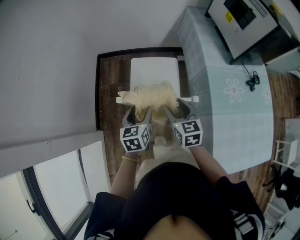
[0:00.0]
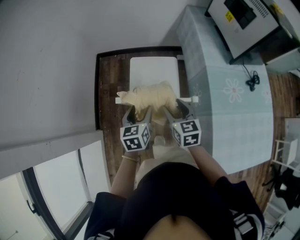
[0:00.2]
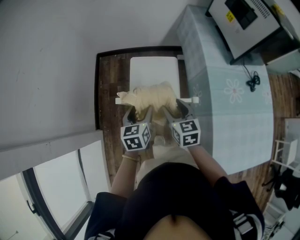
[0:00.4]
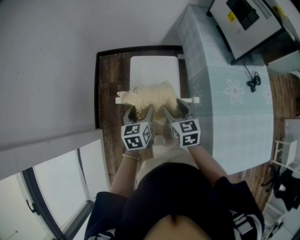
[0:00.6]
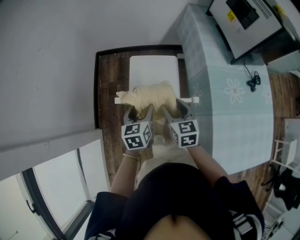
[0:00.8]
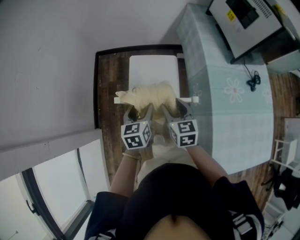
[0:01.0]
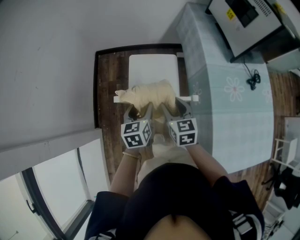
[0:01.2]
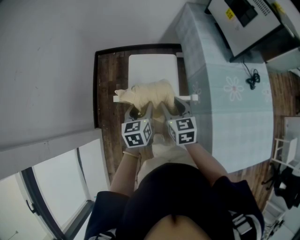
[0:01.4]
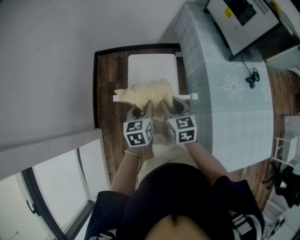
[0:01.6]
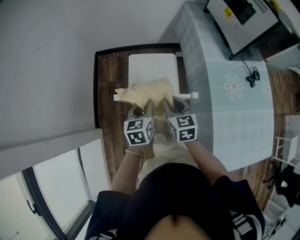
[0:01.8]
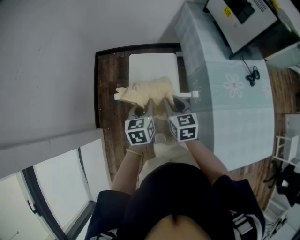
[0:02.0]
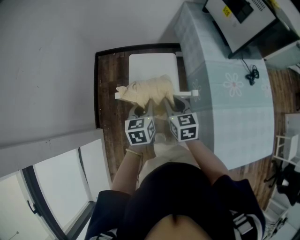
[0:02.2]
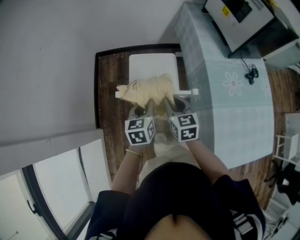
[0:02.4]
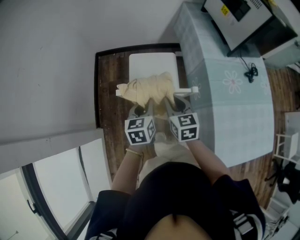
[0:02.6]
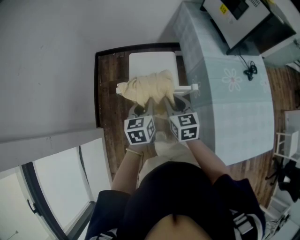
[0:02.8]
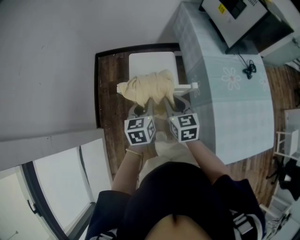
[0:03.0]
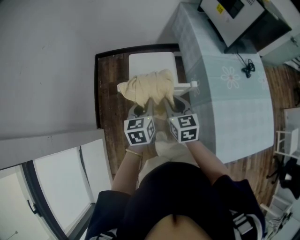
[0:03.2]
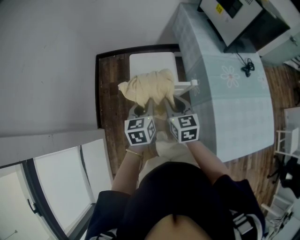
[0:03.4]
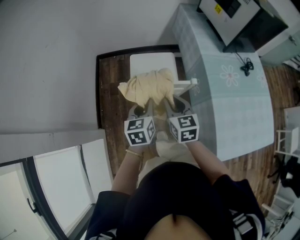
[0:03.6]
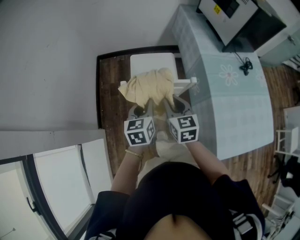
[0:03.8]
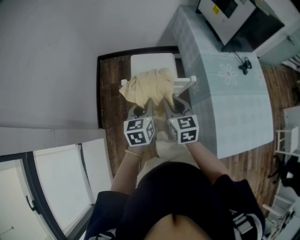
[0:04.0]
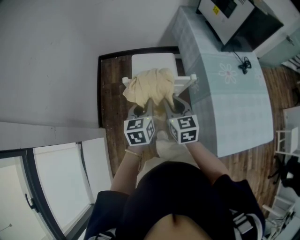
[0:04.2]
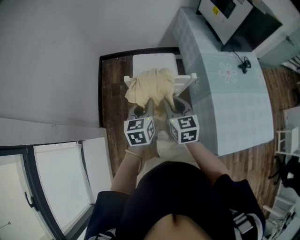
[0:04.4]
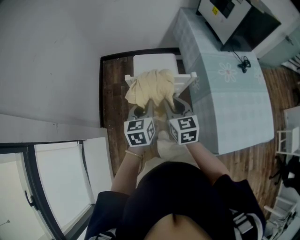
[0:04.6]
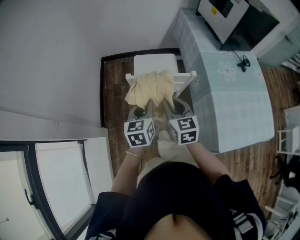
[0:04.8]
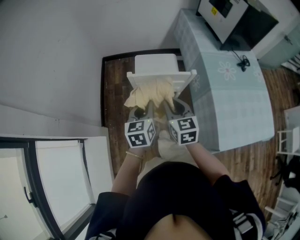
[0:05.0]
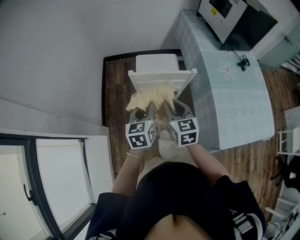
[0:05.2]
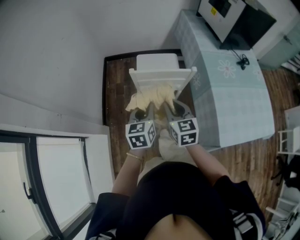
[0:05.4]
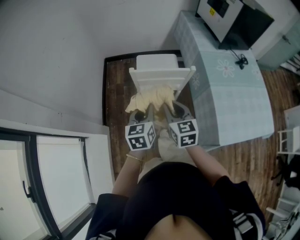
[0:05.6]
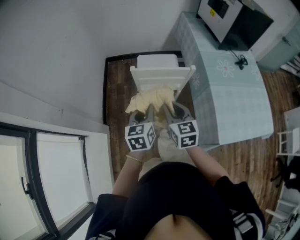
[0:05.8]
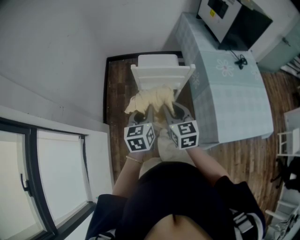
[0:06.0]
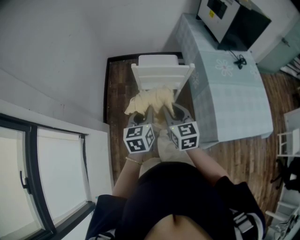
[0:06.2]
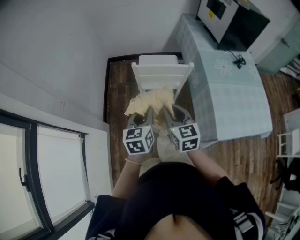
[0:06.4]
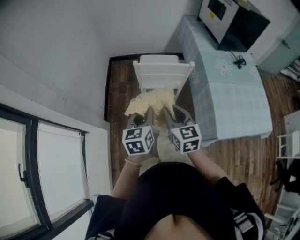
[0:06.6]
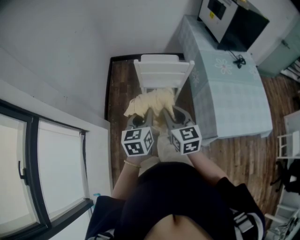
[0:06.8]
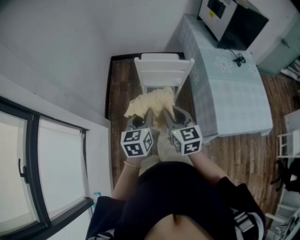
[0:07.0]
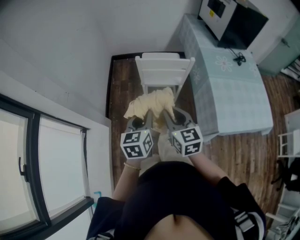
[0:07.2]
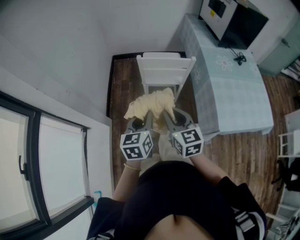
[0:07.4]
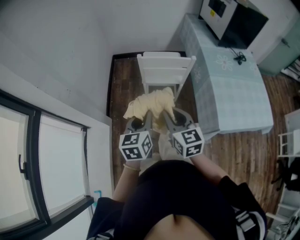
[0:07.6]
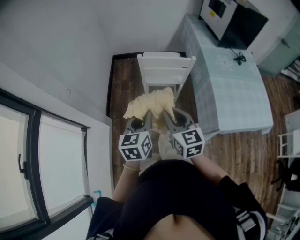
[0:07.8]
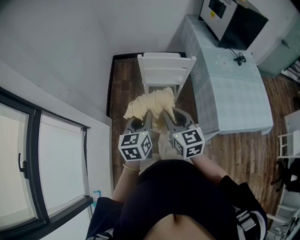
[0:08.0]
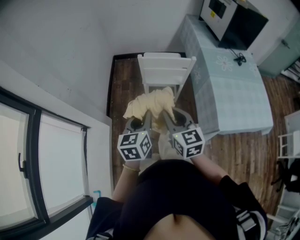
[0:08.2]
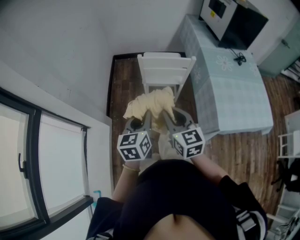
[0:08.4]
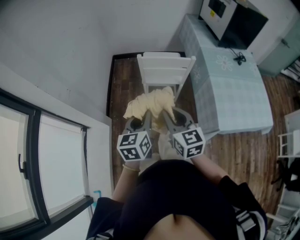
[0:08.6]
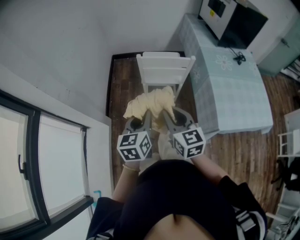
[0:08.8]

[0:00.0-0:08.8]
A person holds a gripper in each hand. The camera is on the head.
0.0 to 1.4 s: There are only small adjustments of the grippers.
1.4 to 3.0 s: The left gripper closes up; the right gripper shifts by roughly 5 cm, and closes its fingers.
3.0 to 4.4 s: Both grippers travel together backward, approximately 5 cm.
4.4 to 5.8 s: Both grippers travel together backward, some 10 cm.
5.8 to 7.4 s: The two grippers go some 15 cm backward.
7.4 to 8.8 s: The grippers stay close to where they were, moving slightly.

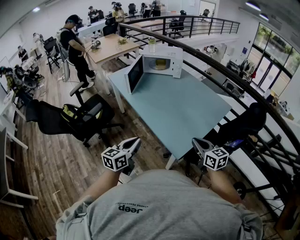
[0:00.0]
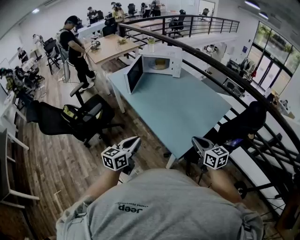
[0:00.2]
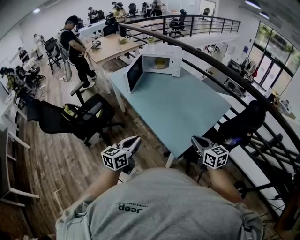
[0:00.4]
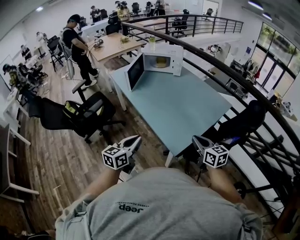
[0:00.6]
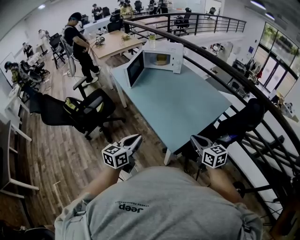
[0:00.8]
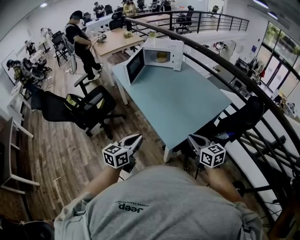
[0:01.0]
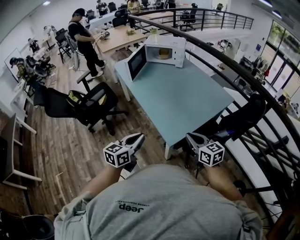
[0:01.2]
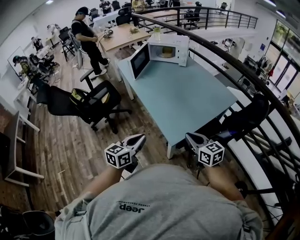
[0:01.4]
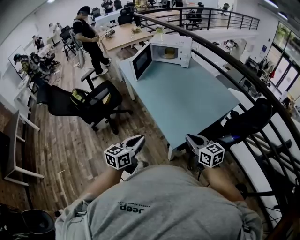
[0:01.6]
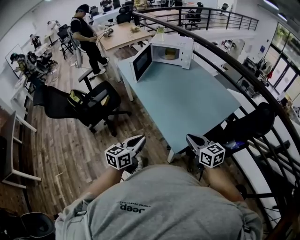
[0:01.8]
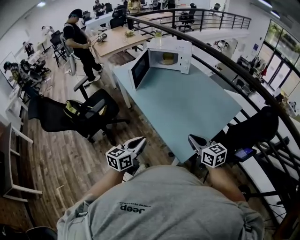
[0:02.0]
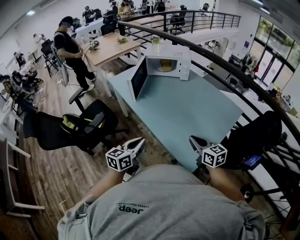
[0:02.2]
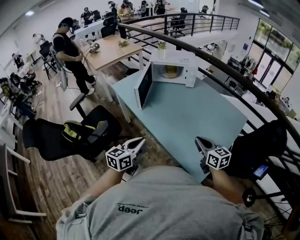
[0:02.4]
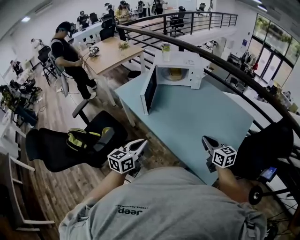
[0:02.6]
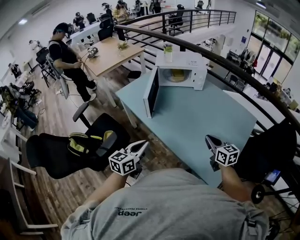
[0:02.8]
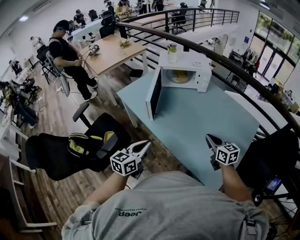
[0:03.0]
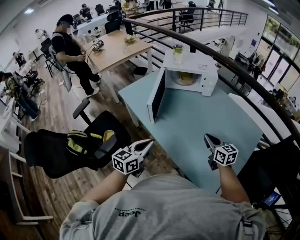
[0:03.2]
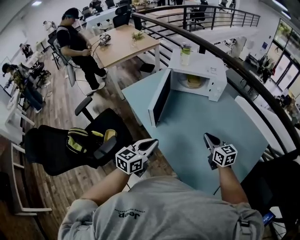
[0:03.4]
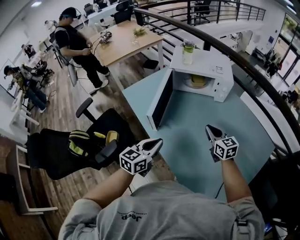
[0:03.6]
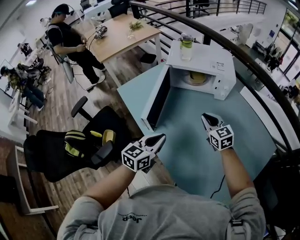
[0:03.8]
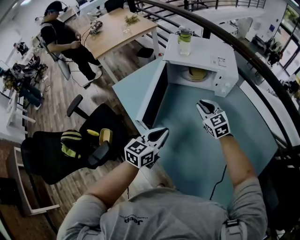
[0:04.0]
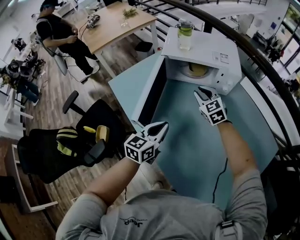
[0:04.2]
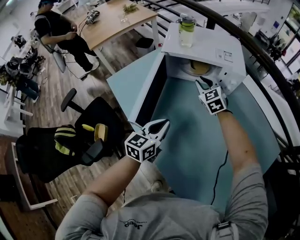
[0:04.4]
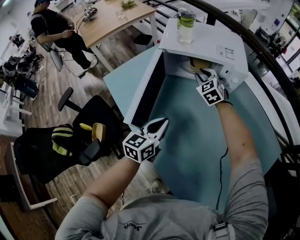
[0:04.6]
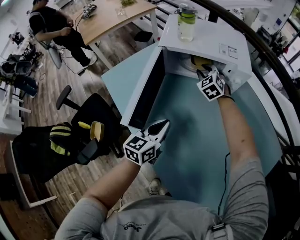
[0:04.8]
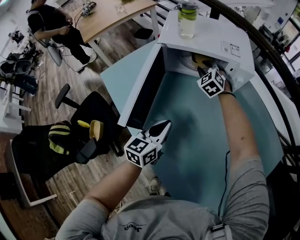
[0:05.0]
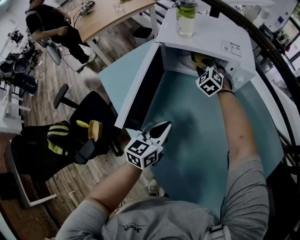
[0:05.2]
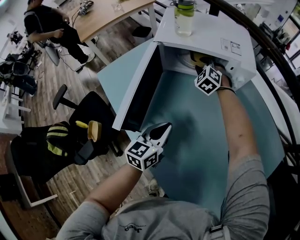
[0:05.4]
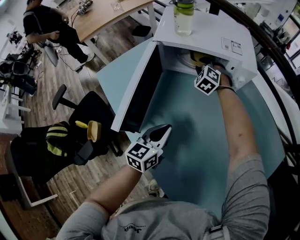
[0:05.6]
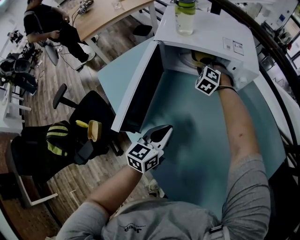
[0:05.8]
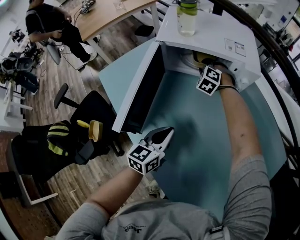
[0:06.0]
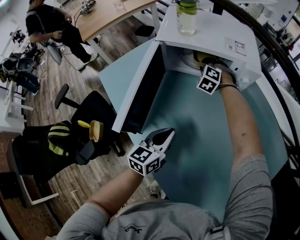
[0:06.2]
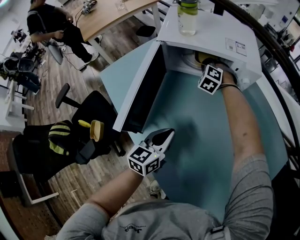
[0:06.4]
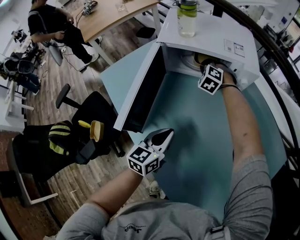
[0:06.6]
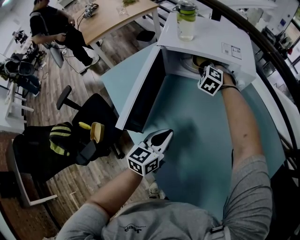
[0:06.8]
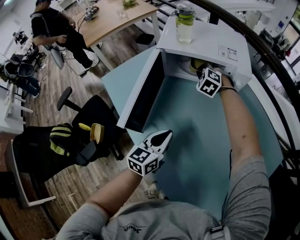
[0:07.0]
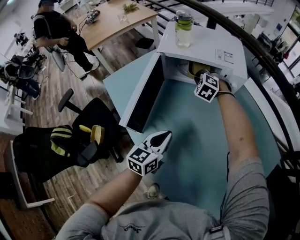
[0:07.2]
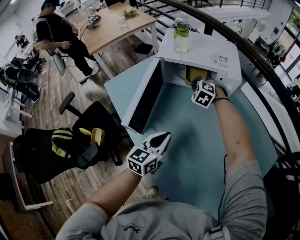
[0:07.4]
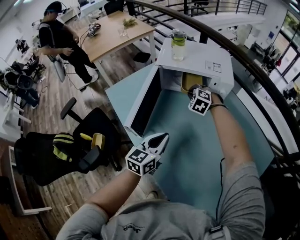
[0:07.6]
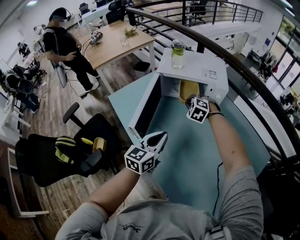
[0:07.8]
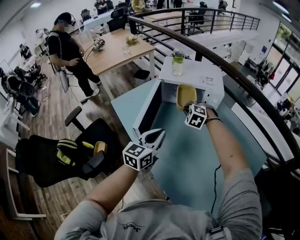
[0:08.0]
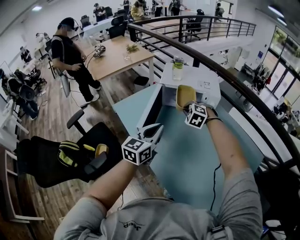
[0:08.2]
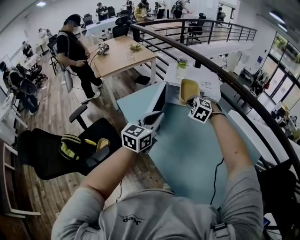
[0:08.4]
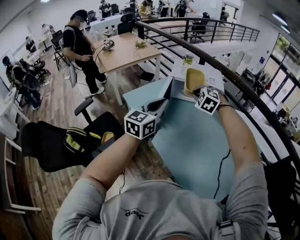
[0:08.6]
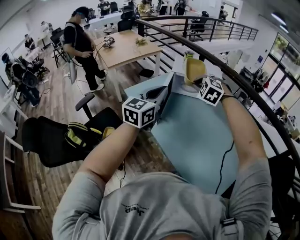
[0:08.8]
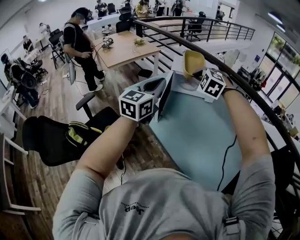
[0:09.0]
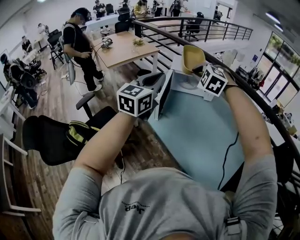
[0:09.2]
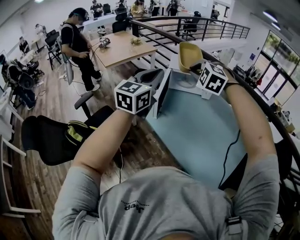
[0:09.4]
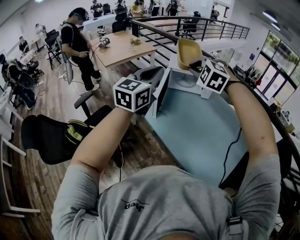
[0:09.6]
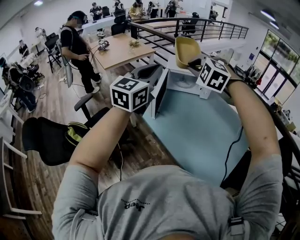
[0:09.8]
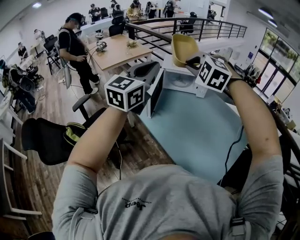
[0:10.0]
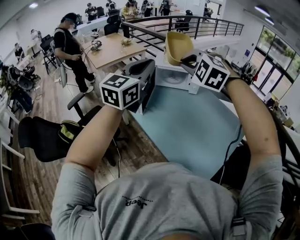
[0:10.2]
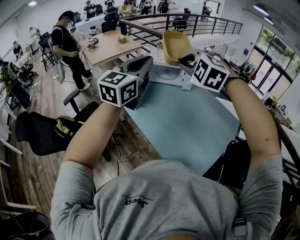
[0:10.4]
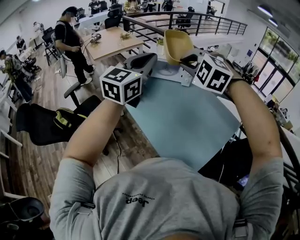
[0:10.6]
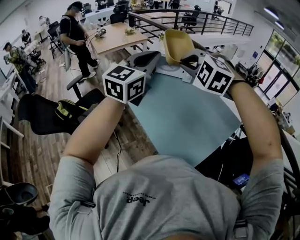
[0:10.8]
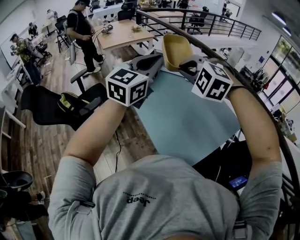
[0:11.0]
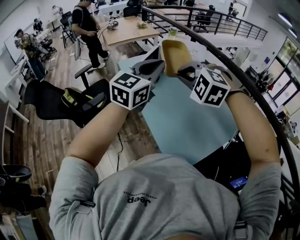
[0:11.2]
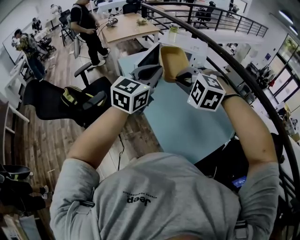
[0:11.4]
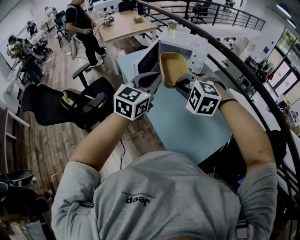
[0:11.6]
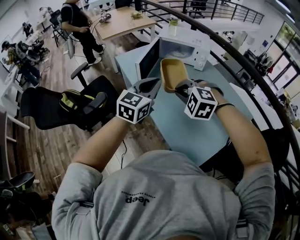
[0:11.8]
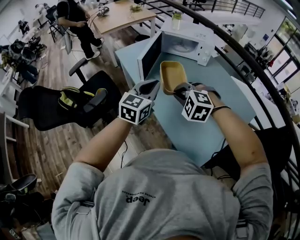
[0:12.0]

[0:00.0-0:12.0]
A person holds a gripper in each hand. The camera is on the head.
0.0 to 1.6 s: The left gripper moves to the right and backward, some 10 cm.
1.6 to 3.0 s: The two grippers go about 40 cm forward and to the left. The right gripper changes its angle by roughly 20 degrees.
3.0 to 4.4 s: The right gripper shifts approximately 50 cm forward, and turns by roughly 40 degrees. The left gripper heads forward, covering about 30 cm.
4.4 to 6.0 s: The left gripper heads downward, covering approximately 5 cm, while the right gripper is displaced downward and forward by roughly 15 cm, and changes its angle by some 40 degrees.
6.0 to 7.6 s: The right gripper goes roughly 15 cm backward and upward, and closes. Meanwhile the left gripper travels upward by approximately 10 cm.
7.6 to 9.0 s: The left gripper is displaced upward by approximately 30 cm, and turns by about 20 degrees; the right gripper goes approximately 40 cm upward and backward.
9.0 to 10.4 s: The right gripper moves backward, upward and to the right, some 20 cm; the left gripper goes roughly 15 cm to the right, upward and backward.
10.4 to 12.0 s: Both grippers move downward, roughly 25 cm. The left gripper changes its angle by approximately 20 degrees. The right gripper turns by some 20 degrees.

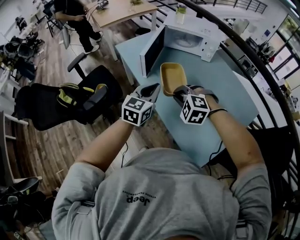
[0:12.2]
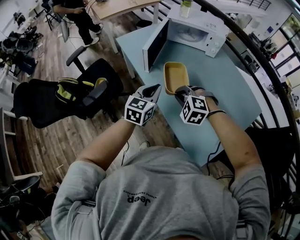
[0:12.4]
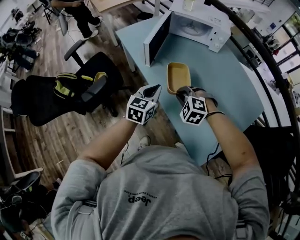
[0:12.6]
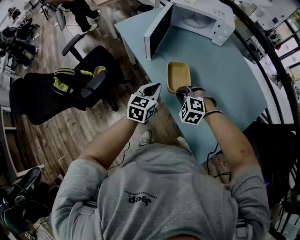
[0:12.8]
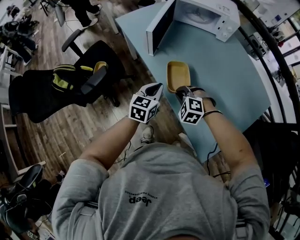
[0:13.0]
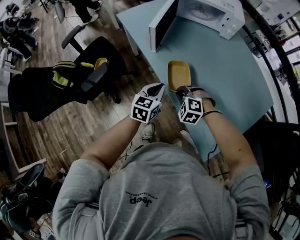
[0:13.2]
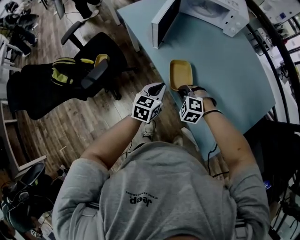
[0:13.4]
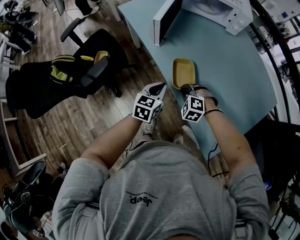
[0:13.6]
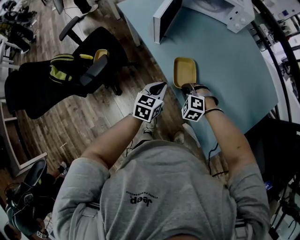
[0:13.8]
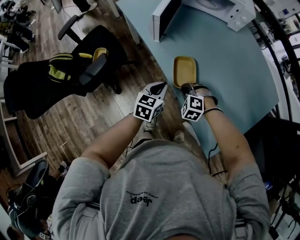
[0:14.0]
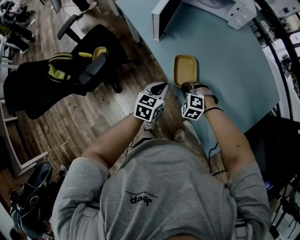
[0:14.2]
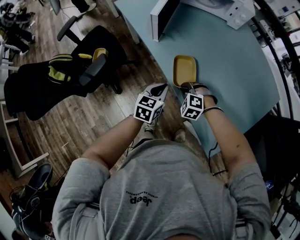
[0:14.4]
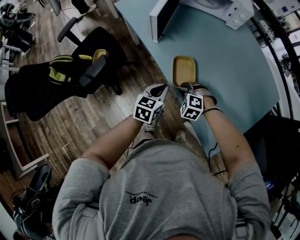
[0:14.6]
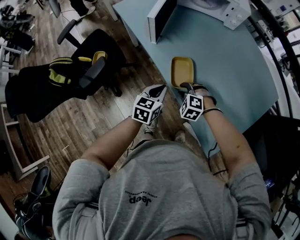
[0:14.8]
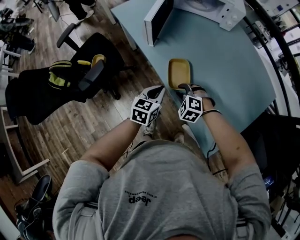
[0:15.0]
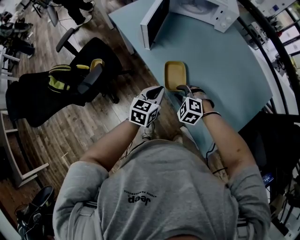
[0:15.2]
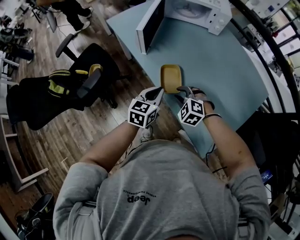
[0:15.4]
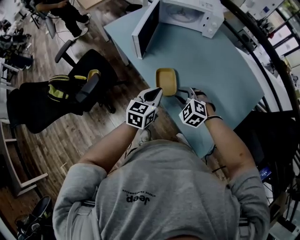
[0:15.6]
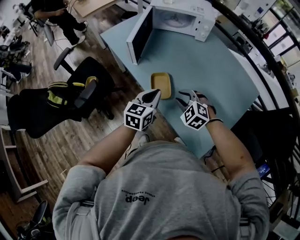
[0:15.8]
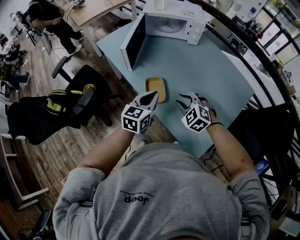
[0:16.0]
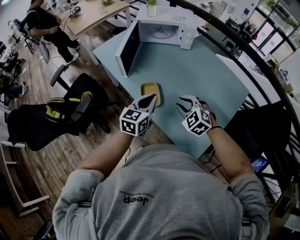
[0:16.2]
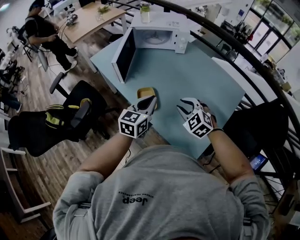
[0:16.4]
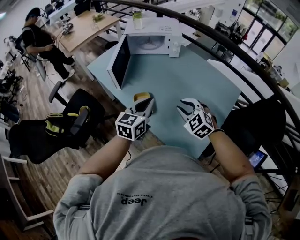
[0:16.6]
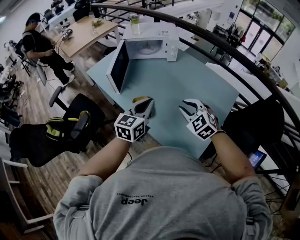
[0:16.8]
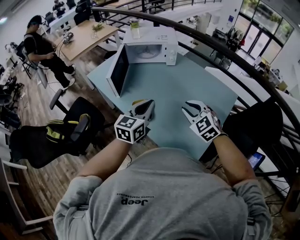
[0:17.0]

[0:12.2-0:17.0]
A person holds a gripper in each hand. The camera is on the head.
12.2 to 13.8 s: Both grippers travel together downward, some 25 cm. The left gripper rotates about 20 degrees.
13.8 to 15.4 s: The two grippers go about 5 cm upward. The right gripper opens up.
15.4 to 17.0 s: Both grippers travel together upward and to the right, some 25 cm. The right gripper rotates some 40 degrees.
